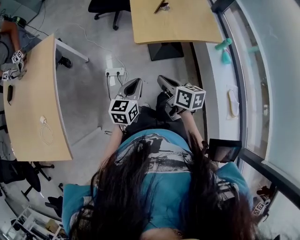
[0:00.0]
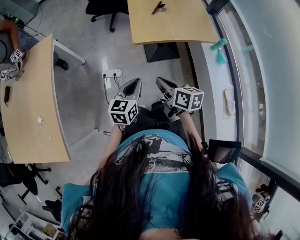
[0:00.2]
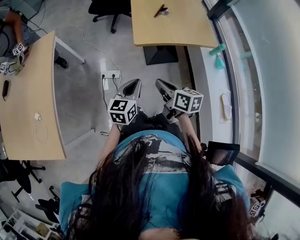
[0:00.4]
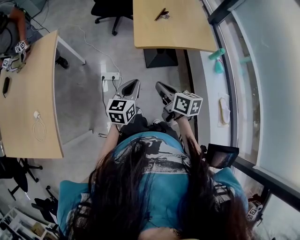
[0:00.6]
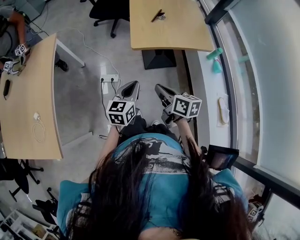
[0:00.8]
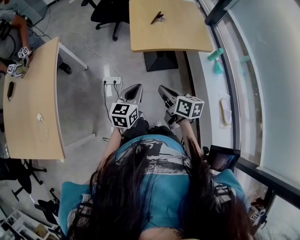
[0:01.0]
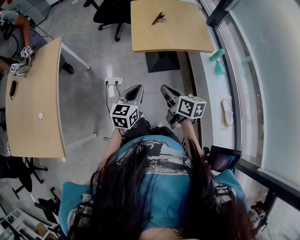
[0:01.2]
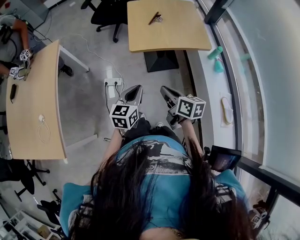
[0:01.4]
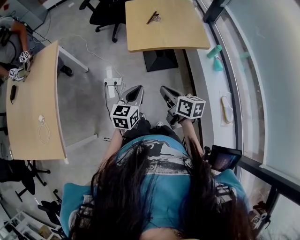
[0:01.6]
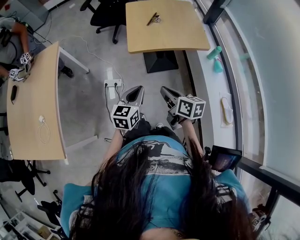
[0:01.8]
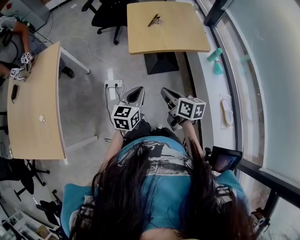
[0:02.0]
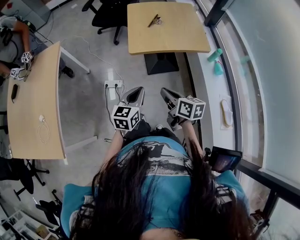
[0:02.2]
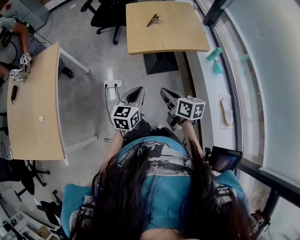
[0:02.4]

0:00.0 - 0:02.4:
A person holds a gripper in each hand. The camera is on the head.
0:00.0 - 0:01.2: The grippers both shift backward by approximately 5 cm.
0:01.2 - 0:02.4: The grippers make only small movements.

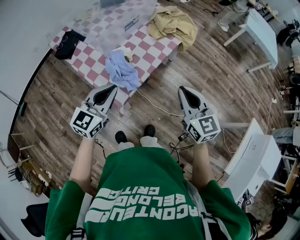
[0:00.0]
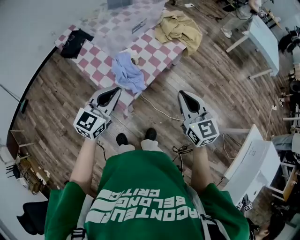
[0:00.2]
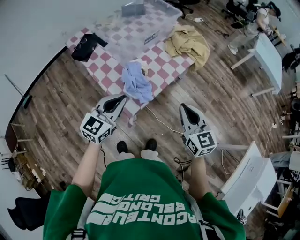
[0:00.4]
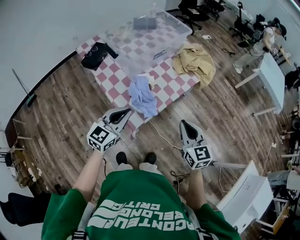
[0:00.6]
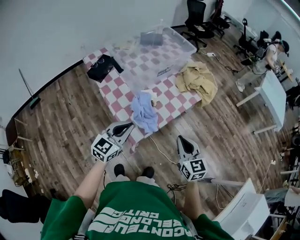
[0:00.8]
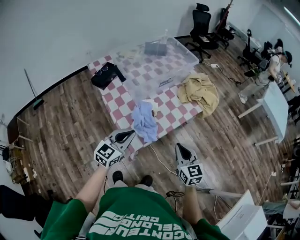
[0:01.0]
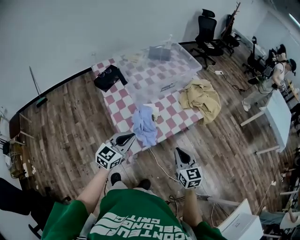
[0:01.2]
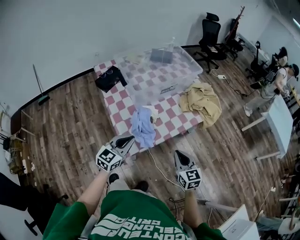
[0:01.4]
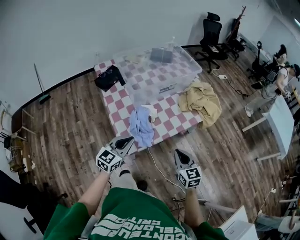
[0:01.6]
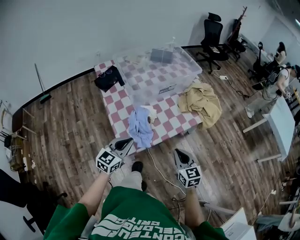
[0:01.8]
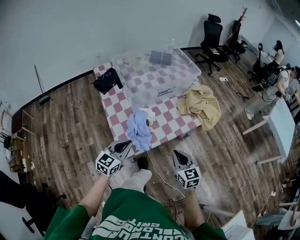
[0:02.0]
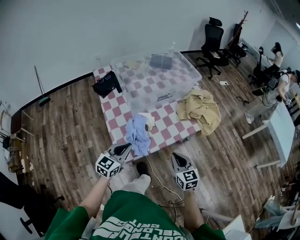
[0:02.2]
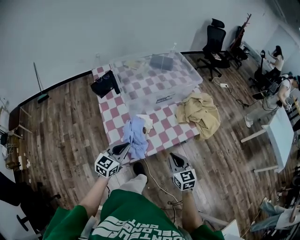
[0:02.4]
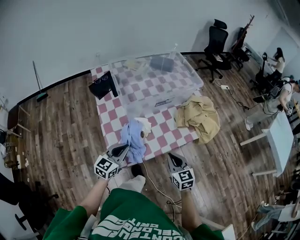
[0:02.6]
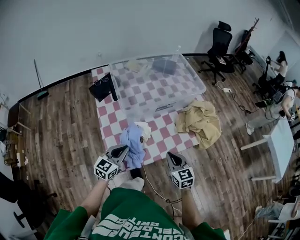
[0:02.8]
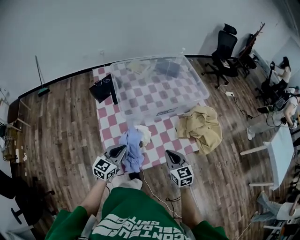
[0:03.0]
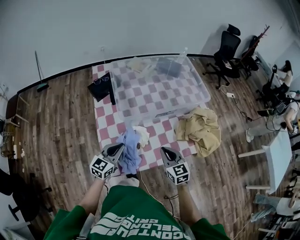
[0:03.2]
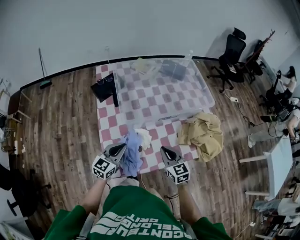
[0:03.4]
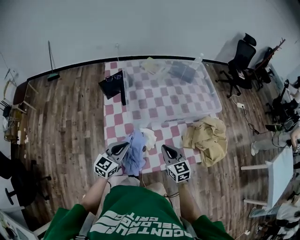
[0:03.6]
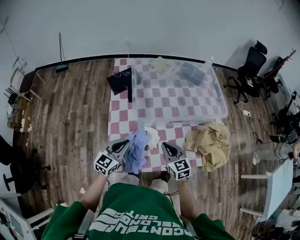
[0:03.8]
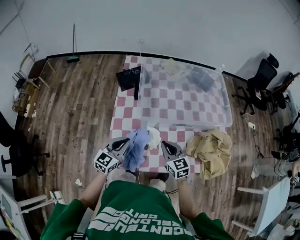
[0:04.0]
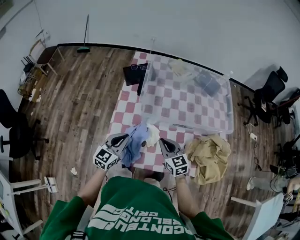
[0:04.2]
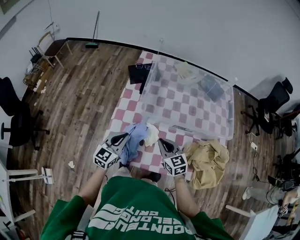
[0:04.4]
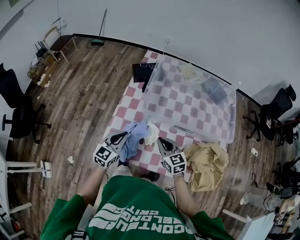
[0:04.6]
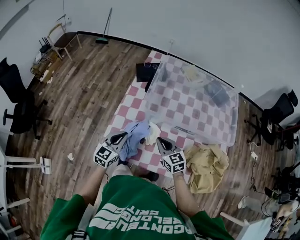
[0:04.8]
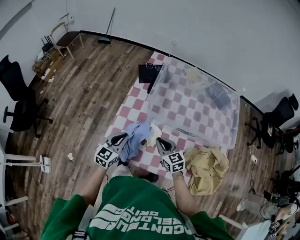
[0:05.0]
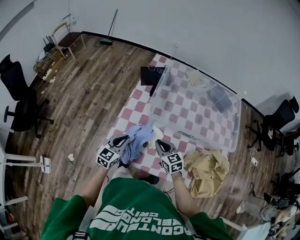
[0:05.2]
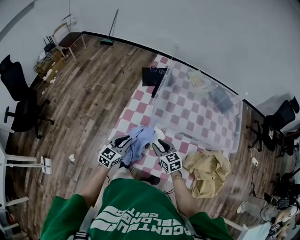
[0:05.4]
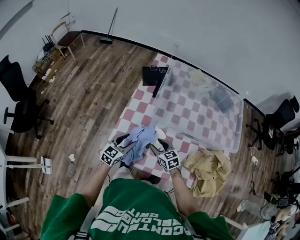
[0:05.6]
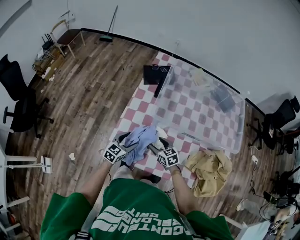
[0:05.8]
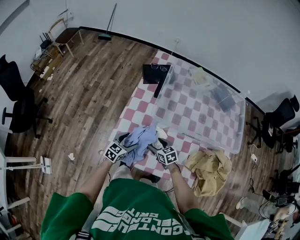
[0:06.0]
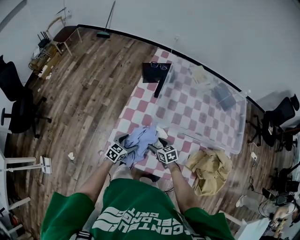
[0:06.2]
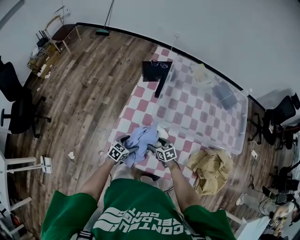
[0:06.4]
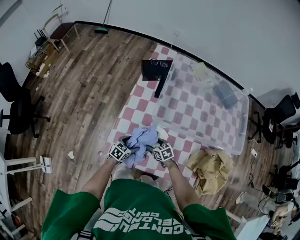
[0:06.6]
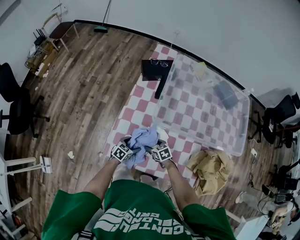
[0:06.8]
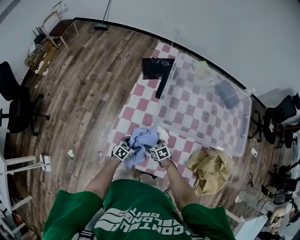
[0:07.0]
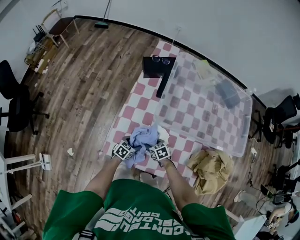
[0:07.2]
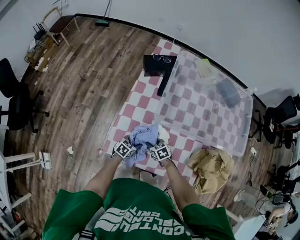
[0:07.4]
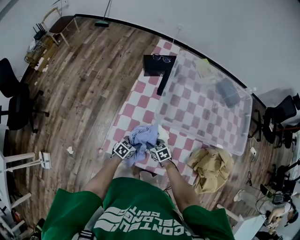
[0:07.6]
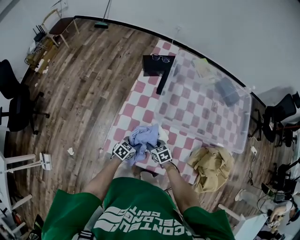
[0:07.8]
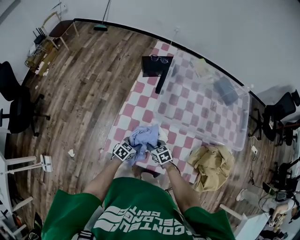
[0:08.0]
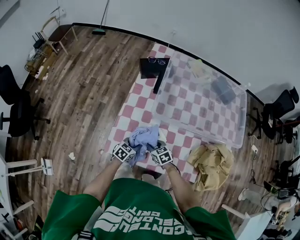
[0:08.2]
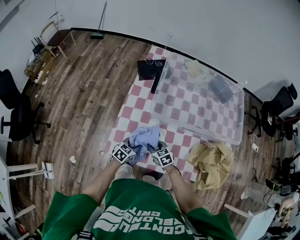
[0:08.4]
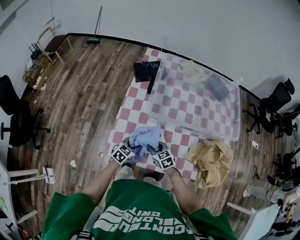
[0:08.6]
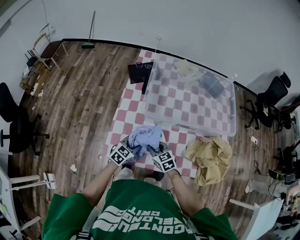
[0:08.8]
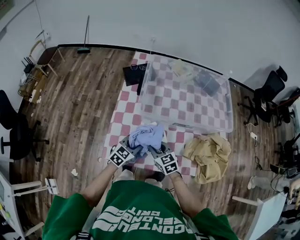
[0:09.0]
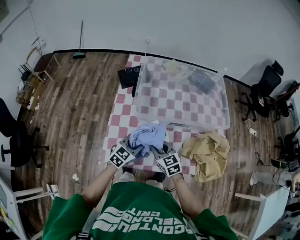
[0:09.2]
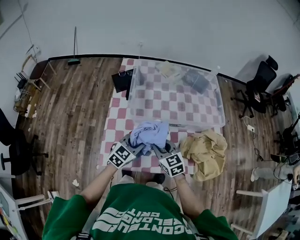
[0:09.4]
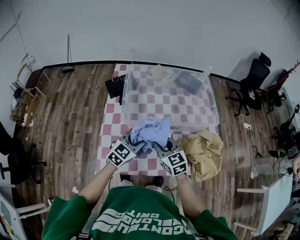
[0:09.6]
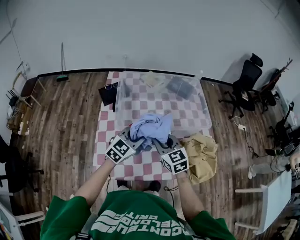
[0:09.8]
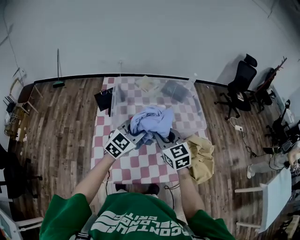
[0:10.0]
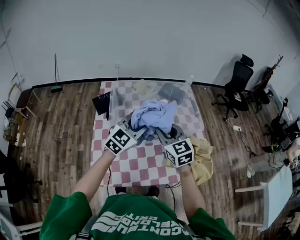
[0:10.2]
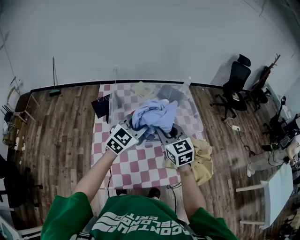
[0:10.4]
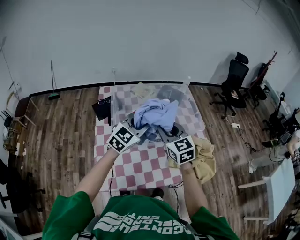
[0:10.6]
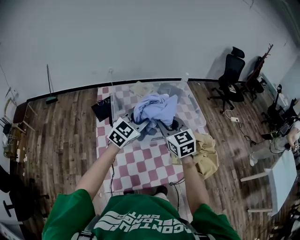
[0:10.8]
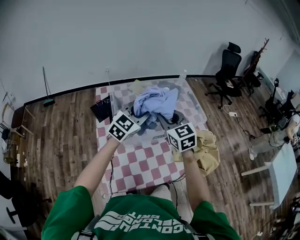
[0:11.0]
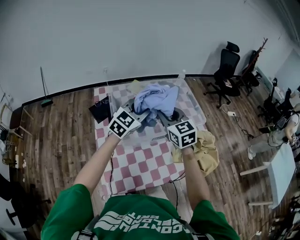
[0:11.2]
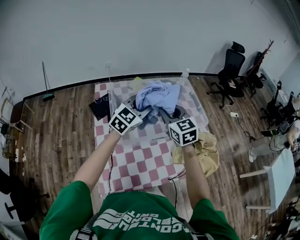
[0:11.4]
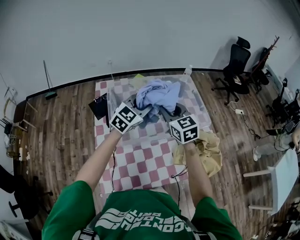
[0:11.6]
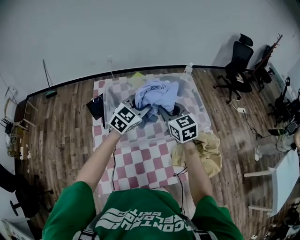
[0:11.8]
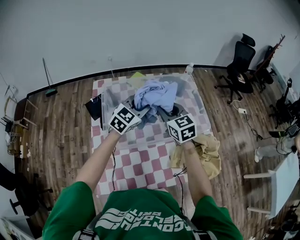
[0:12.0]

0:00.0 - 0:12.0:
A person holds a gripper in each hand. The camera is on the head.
0:00.0 - 0:01.6: The left gripper moves downward, roughly 5 cm; the right gripper moves downward and forward, about 10 cm.
0:01.6 - 0:03.0: The grippers both shift forward by about 15 cm.
0:03.0 - 0:04.4: The right gripper shifts by roughly 15 cm, and rotates approximately 40 degrees. Meanwhile the left gripper changes its angle by roughly 30 degrees.
0:04.4 - 0:06.0: The two grippers go approximately 15 cm downward. The left gripper opens up; the right gripper swivels about 20 degrees, and opens up.
0:06.0 - 0:07.6: The two grippers go roughly 10 cm downward. The right gripper closes its fingers; the left gripper swivels roughly 20 degrees, and closes.
0:07.6 - 0:09.0: The two grippers go some 20 cm upward. The right gripper swivels some 30 degrees. The left gripper rotates about 30 degrees.
0:09.0 - 0:10.4: The two grippers go about 30 cm upward and forward. The left gripper turns by about 30 degrees; the right gripper changes its angle by roughly 30 degrees.
0:10.4 - 0:12.0: Both grippers travel together forward, about 15 cm.

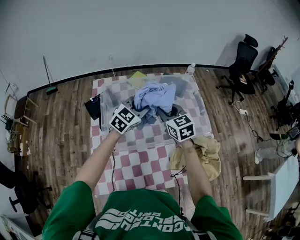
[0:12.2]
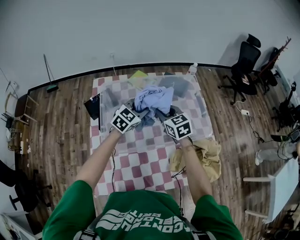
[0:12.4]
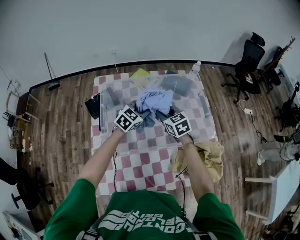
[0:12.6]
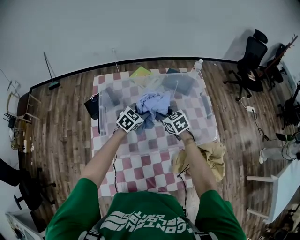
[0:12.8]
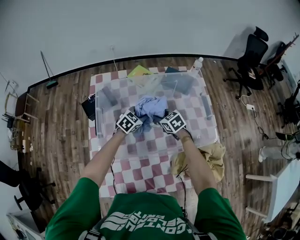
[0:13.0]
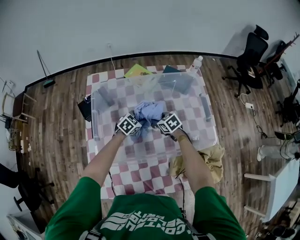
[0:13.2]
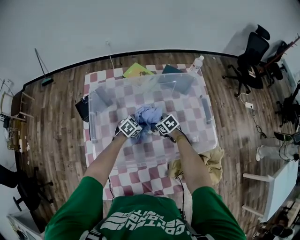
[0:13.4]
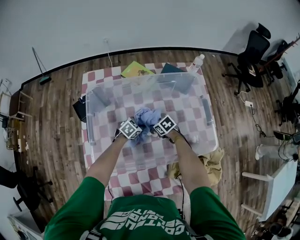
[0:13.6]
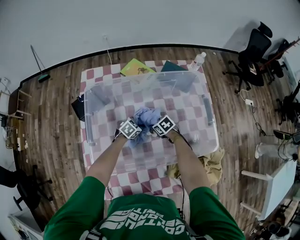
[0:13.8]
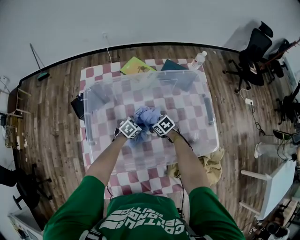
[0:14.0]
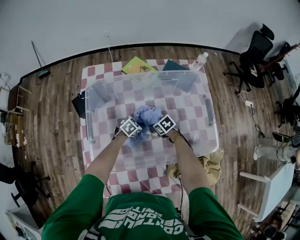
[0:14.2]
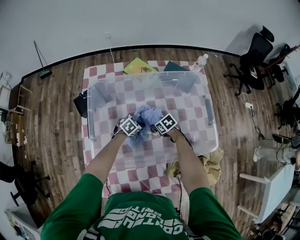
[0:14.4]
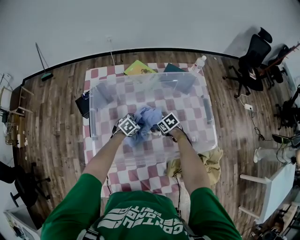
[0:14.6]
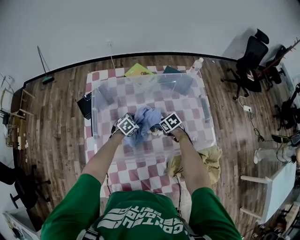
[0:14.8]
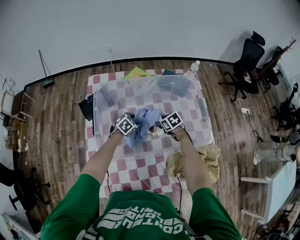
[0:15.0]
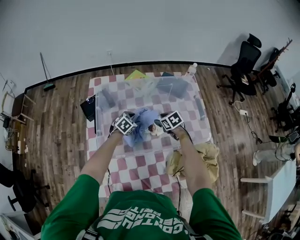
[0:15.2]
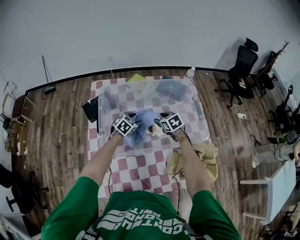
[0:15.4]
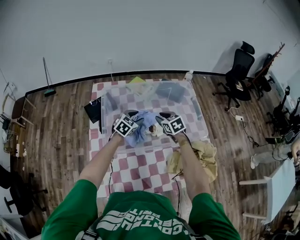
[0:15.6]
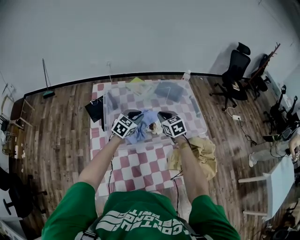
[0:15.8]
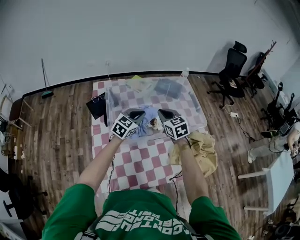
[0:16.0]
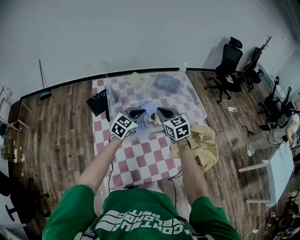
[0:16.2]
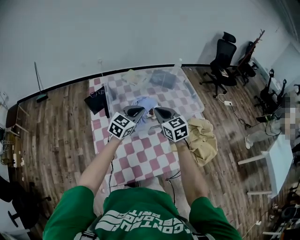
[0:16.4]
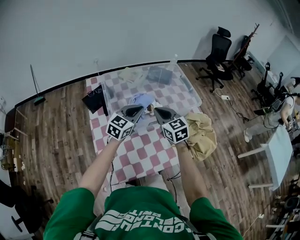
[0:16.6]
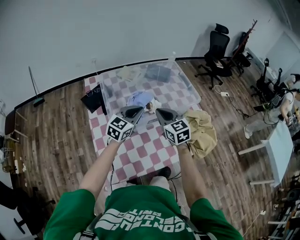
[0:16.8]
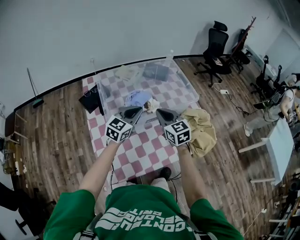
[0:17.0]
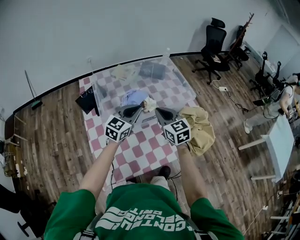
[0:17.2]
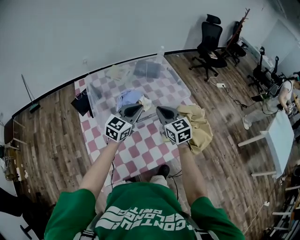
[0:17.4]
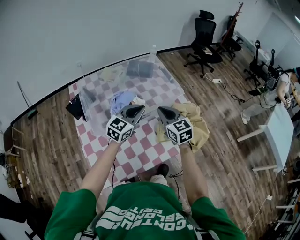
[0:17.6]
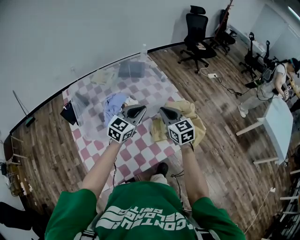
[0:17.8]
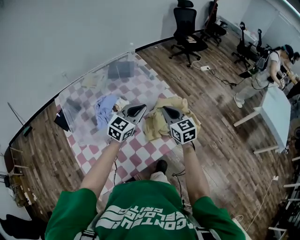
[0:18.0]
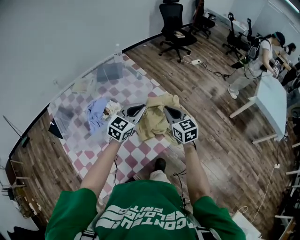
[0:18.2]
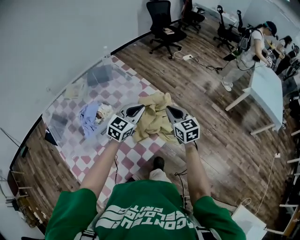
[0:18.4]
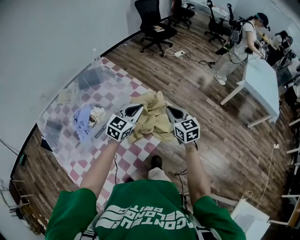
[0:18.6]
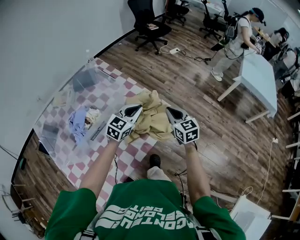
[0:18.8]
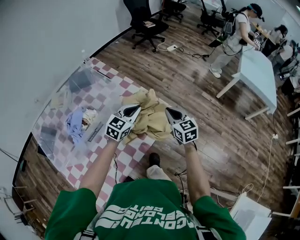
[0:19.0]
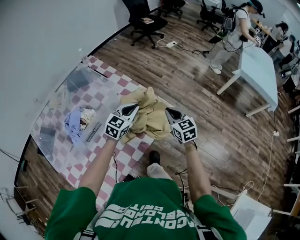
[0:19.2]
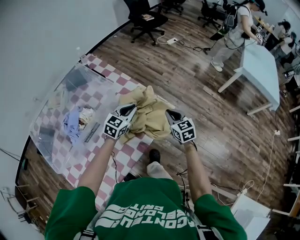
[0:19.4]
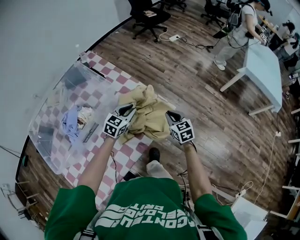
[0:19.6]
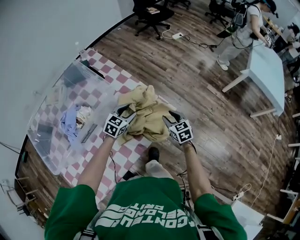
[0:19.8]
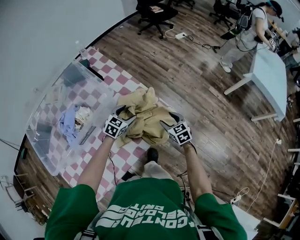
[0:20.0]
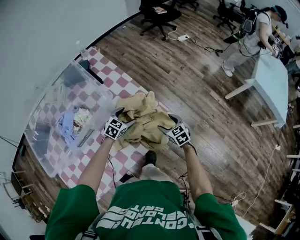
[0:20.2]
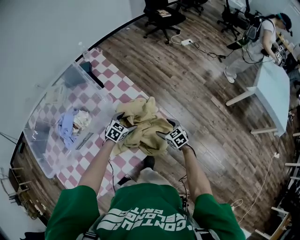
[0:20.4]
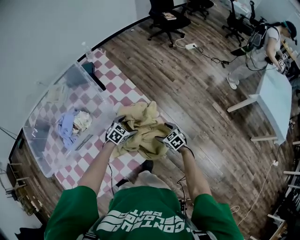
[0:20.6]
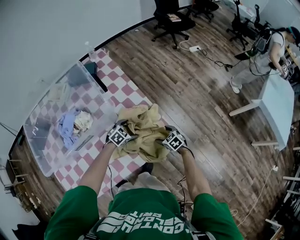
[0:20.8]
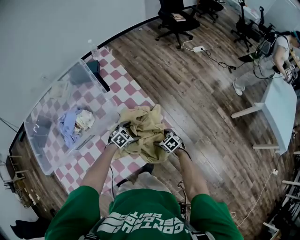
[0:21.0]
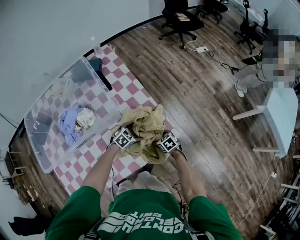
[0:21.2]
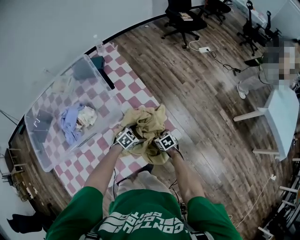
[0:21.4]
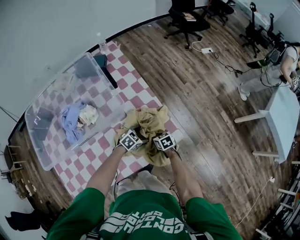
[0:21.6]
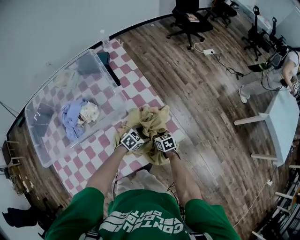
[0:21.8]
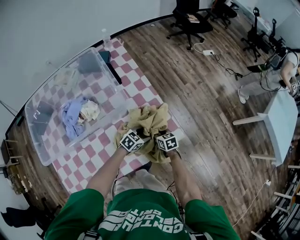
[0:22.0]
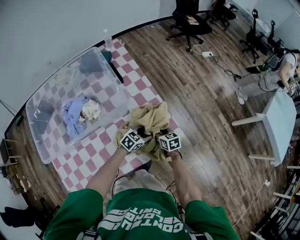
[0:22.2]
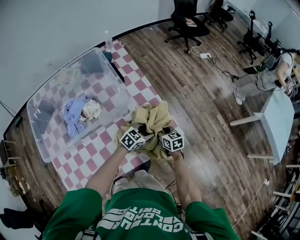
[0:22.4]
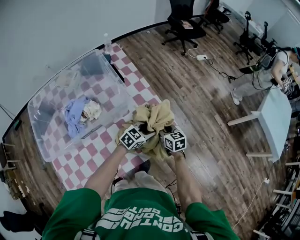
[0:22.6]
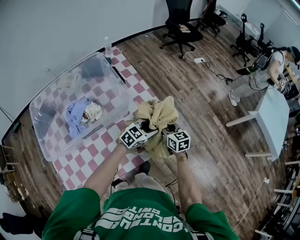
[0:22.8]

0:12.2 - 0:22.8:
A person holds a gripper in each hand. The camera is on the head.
0:12.2 - 0:13.8: The grippers both shift downward by roughly 35 cm. The left gripper angles its fingers downward, by some 30 degrees. The right gripper points its fingers approximately 40 degrees further downward.
0:13.8 - 0:15.2: The two grippers go about 10 cm upward.
0:15.2 - 0:16.8: The left gripper travels upward and backward by about 35 cm, angles its fingers upward, by approximately 40 degrees, and closes; the right gripper goes roughly 35 cm backward and upward, points its fingers about 40 degrees further upward, and closes.
0:16.8 - 0:18.2: Both grippers travel together to the right, roughly 30 cm. The left gripper rotates roughly 20 degrees. The right gripper changes its angle by roughly 20 degrees.
0:18.2 - 0:19.8: The left gripper goes approximately 25 cm downward, forward and to the right, rotates some 20 degrees, and opens; the right gripper goes some 25 cm downward and to the right, changes its angle by about 20 degrees, and opens its fingers.
0:19.8 - 0:21.2: The grippers both shift downward by about 15 cm. The right gripper changes its angle by some 40 degrees, and opens up. Meanwhile the left gripper rotates roughly 20 degrees, and opens up.
0:21.2 - 0:22.8: The two grippers go roughly 20 cm upward. The right gripper points its fingers approximately 30 degrees further upward, and closes. The left gripper swivels some 30 degrees, and closes its fingers.
